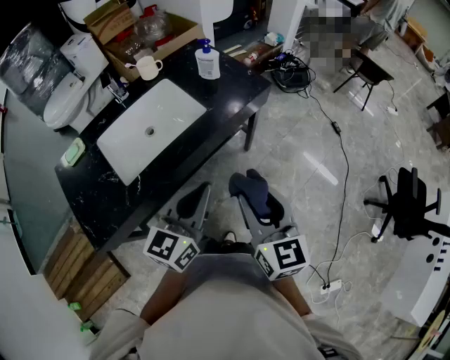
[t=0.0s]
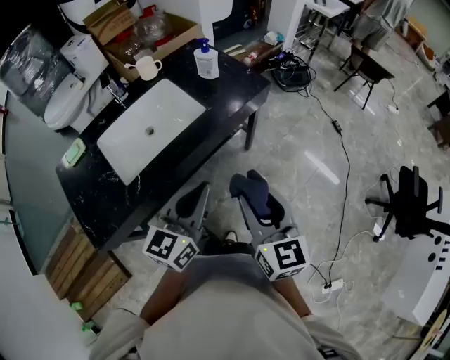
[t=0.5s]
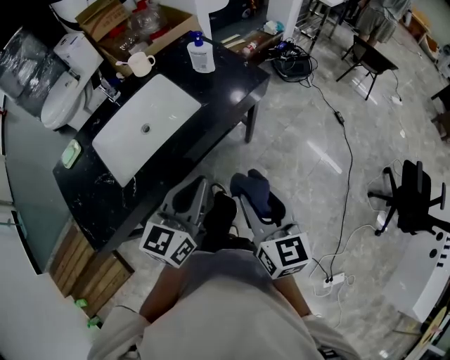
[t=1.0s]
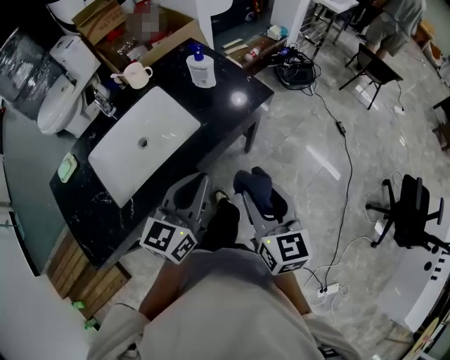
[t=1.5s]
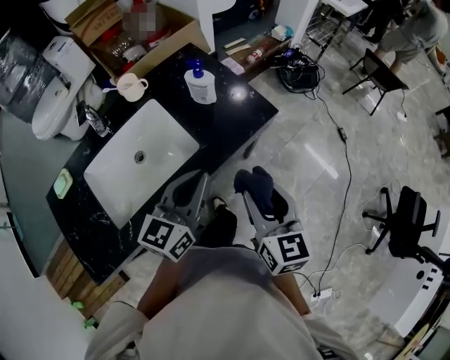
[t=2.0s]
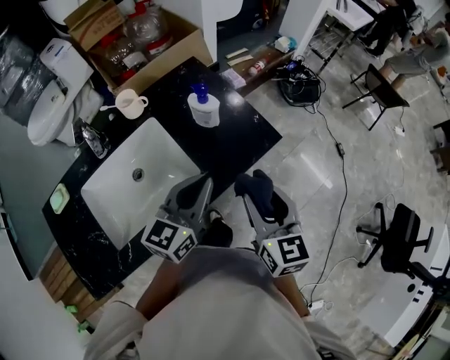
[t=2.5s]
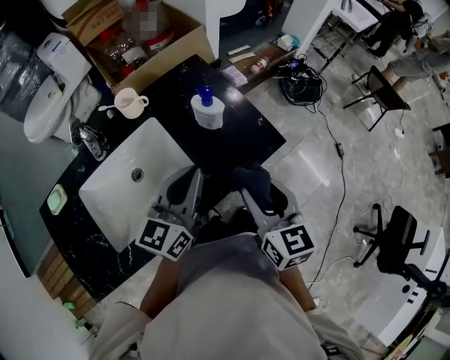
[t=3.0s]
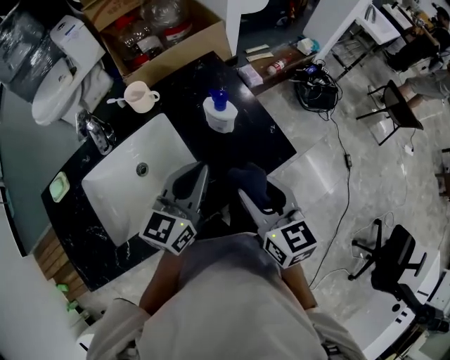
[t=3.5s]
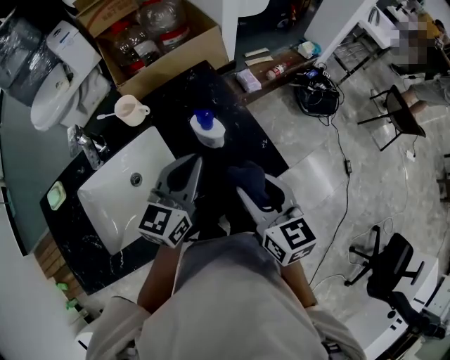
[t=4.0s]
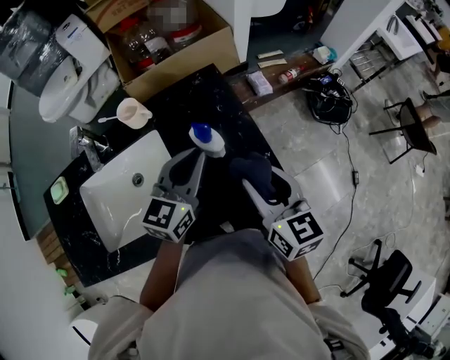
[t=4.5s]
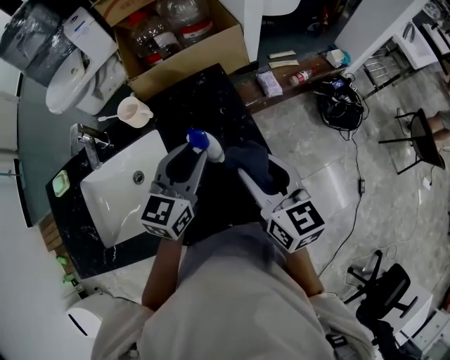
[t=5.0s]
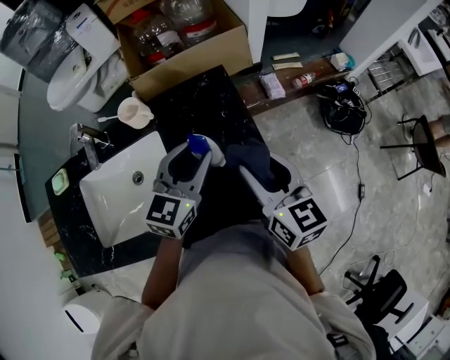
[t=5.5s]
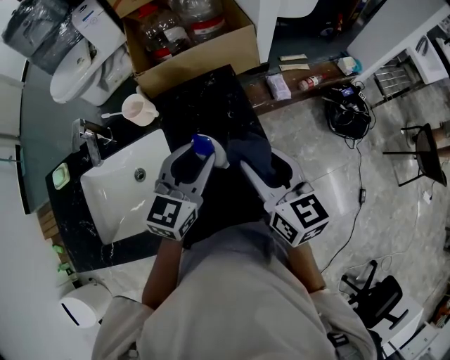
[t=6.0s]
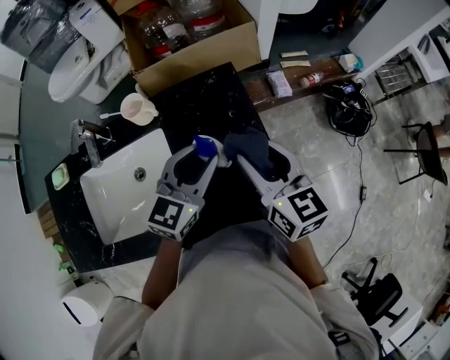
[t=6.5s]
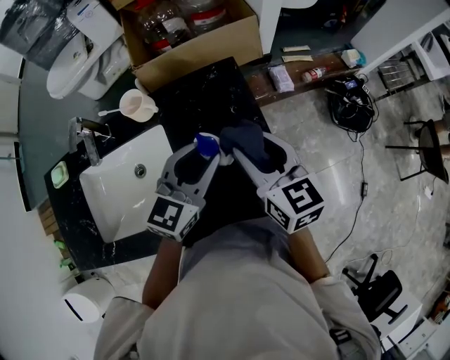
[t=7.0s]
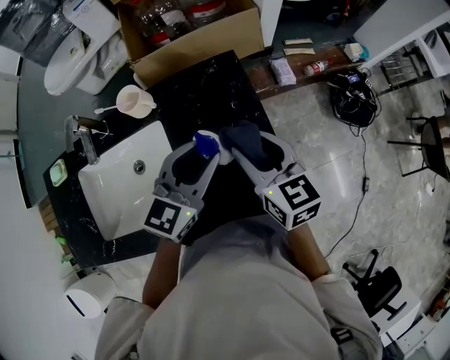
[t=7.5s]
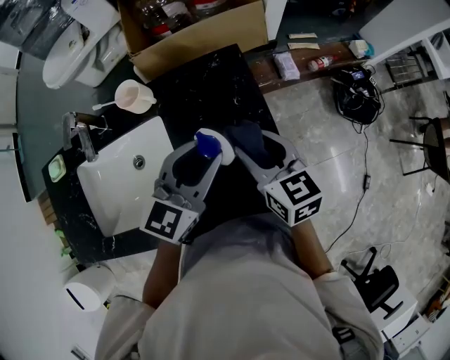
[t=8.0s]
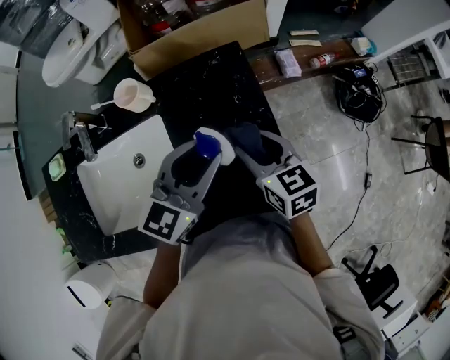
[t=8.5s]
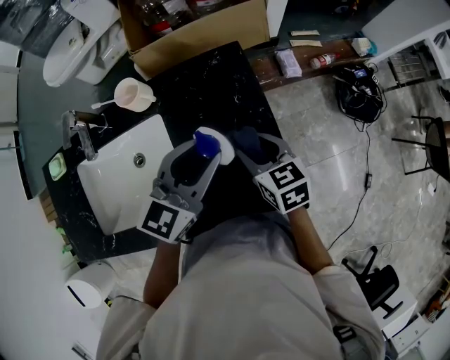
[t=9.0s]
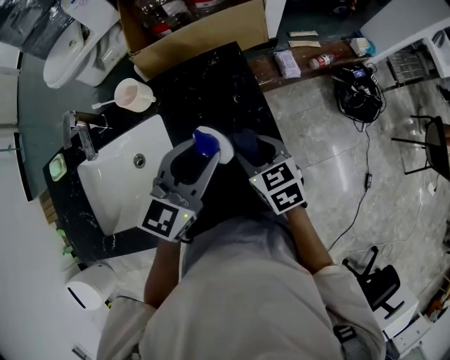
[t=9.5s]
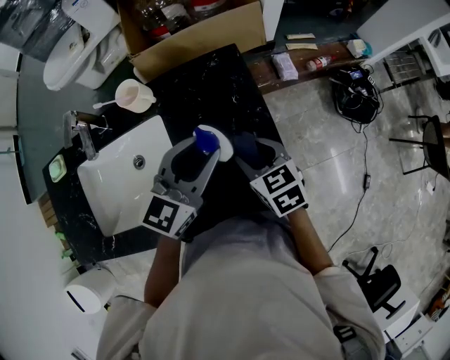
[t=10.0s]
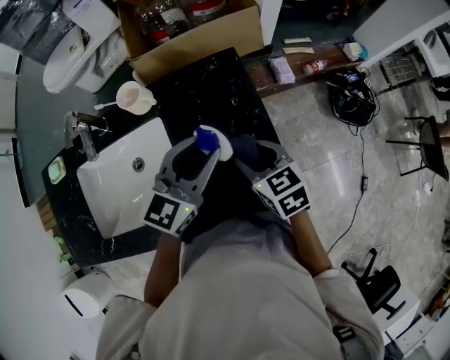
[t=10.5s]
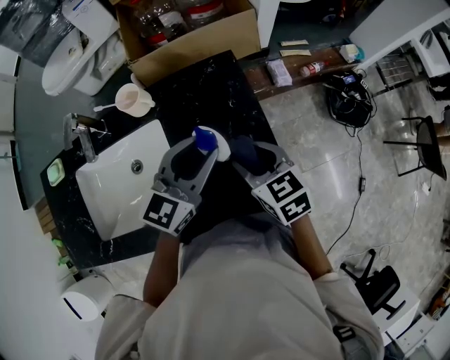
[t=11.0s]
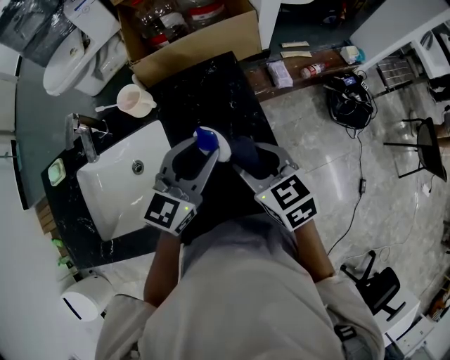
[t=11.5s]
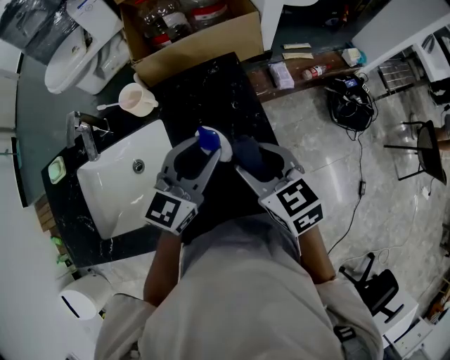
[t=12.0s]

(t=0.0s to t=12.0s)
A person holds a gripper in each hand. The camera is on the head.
t=0.0s - t=2.0s: The grippers both shift forward by roughly 20 cm.
t=2.0s - t=4.0s: The two grippers go some 20 cm forward. The right gripper rotates about 20 degrees.
t=4.0s - t=6.0s: The right gripper travels forward by approximately 15 cm; the left gripper heads forward, covering some 10 cm, and opens up.
t=6.0s - t=8.0s: The right gripper goes about 5 cm downward.
t=8.0s - t=10.0s: The right gripper heads downward, covering approximately 5 cm.
t=10.0s - t=12.0s: The right gripper moves upward, roughly 10 cm.

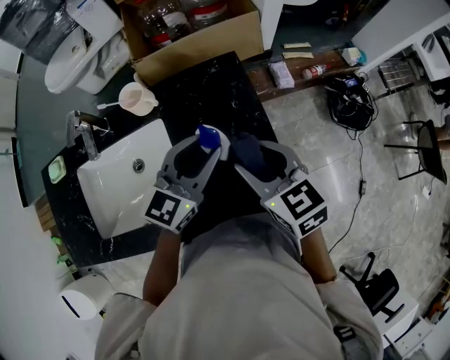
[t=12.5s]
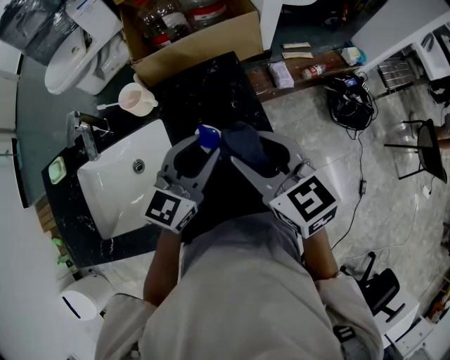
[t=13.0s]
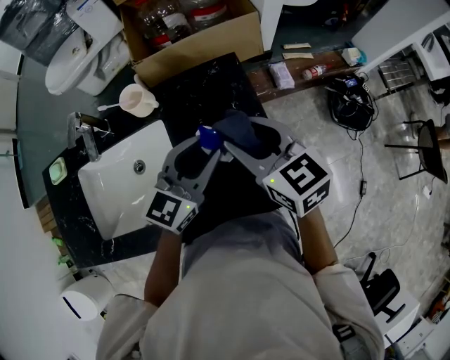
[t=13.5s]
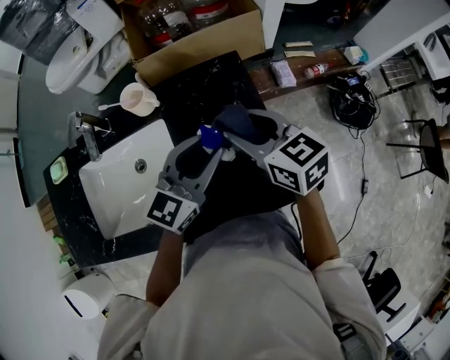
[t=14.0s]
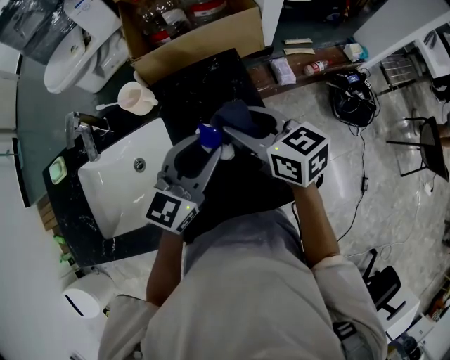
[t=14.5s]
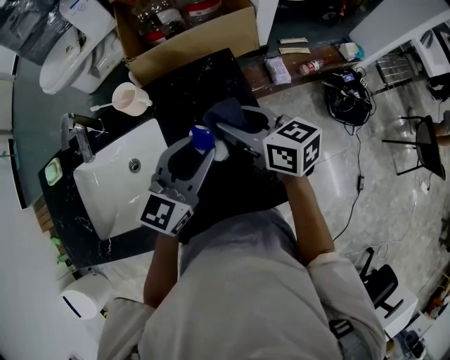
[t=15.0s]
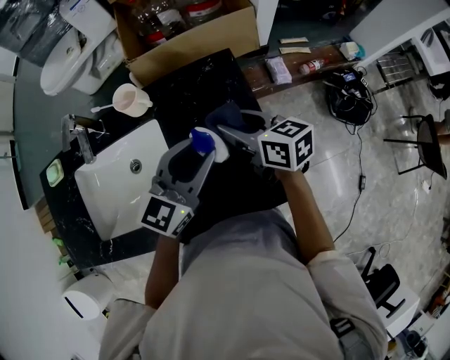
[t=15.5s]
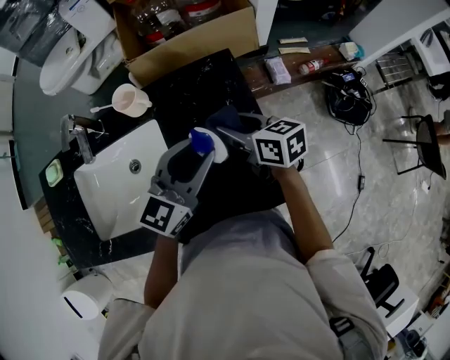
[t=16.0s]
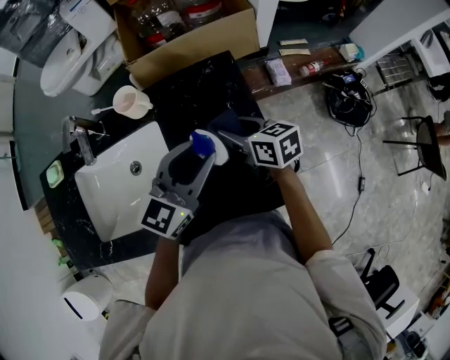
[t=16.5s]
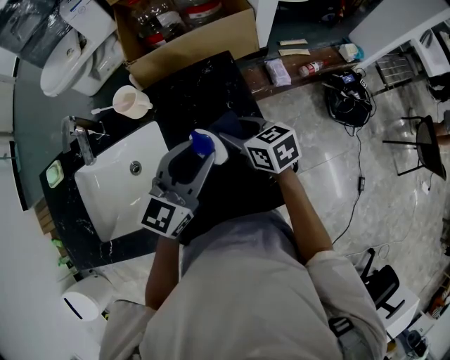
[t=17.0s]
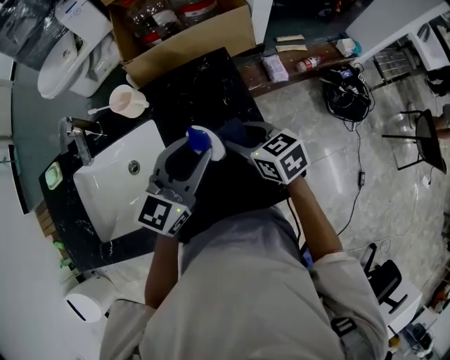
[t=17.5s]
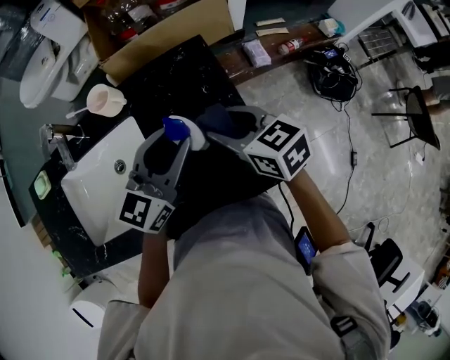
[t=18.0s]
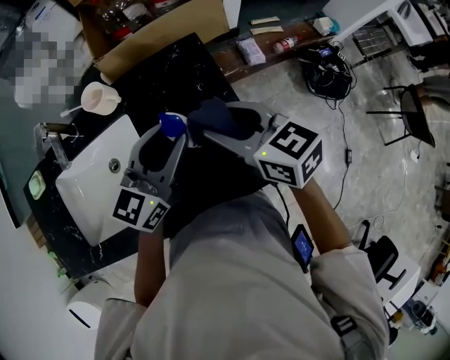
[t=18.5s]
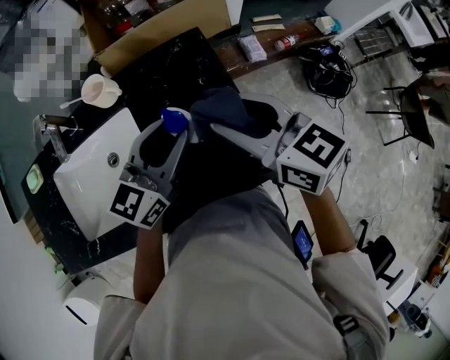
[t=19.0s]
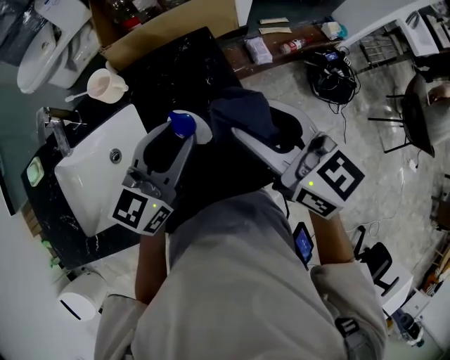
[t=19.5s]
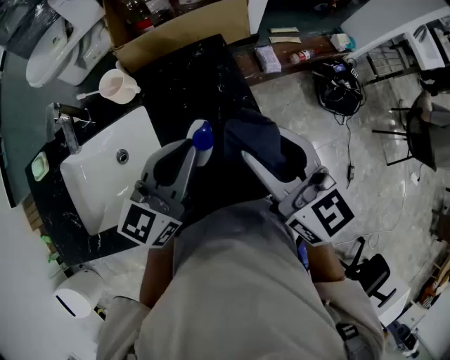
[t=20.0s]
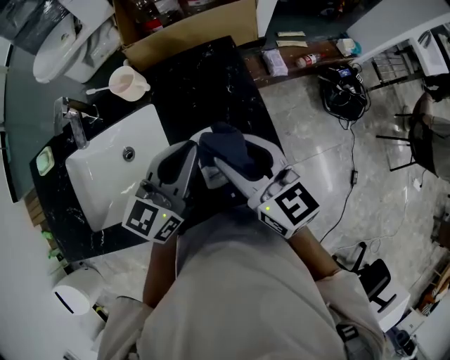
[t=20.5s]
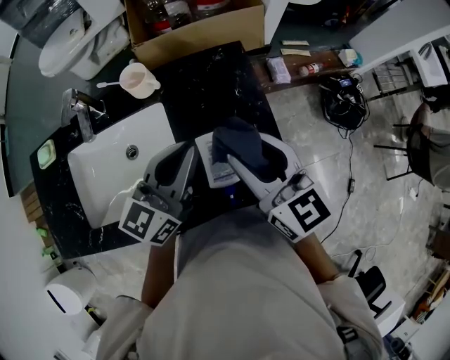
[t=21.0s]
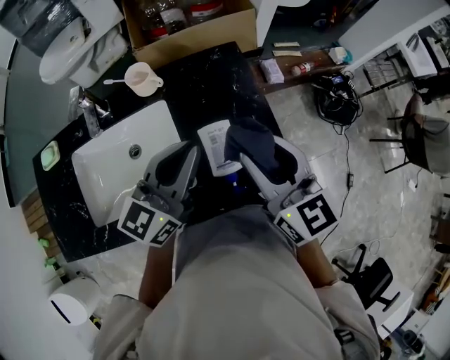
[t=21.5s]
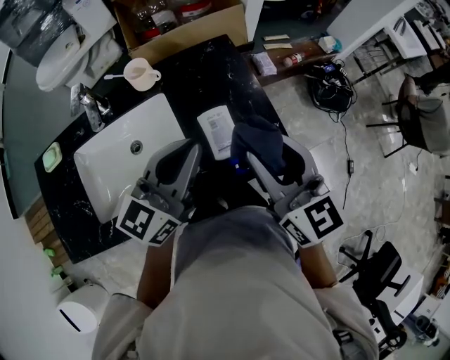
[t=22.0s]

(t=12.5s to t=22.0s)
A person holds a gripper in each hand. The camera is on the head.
t=12.5s - t=14.5s: The right gripper travels forward by approximately 10 cm.
t=14.5s - t=16.5s: The right gripper travels downward by approximately 10 cm.
t=16.5s - t=18.0s: The right gripper is displaced upward by approximately 5 cm.
t=18.0s - t=20.0s: The right gripper moves upward, roughly 10 cm, and changes its angle by about 20 degrees; the left gripper closes.
t=20.0s - t=22.0s: The right gripper is displaced backward by some 10 cm. Meanwhile the left gripper heads backward, to the left and upward, covering some 10 cm.

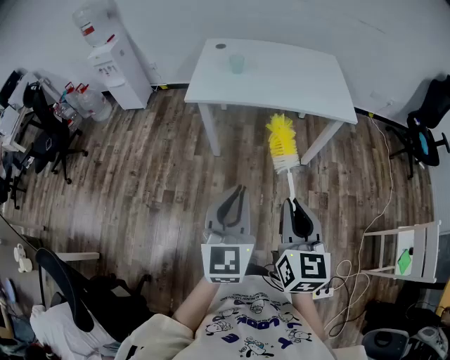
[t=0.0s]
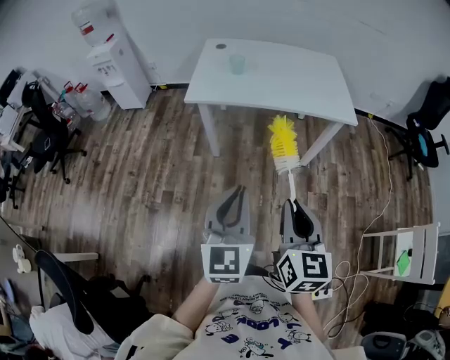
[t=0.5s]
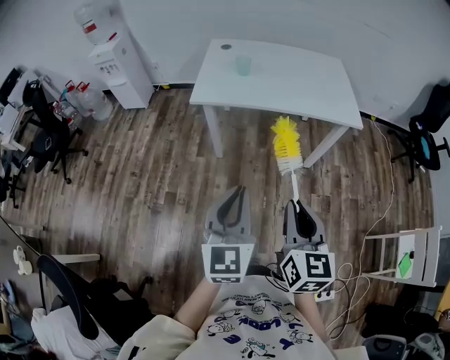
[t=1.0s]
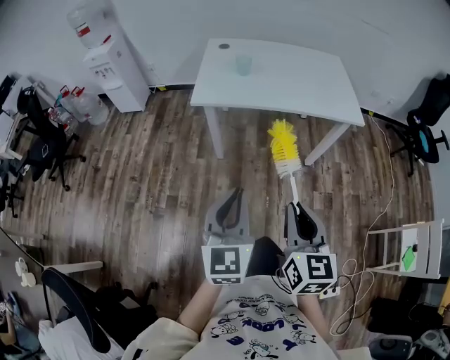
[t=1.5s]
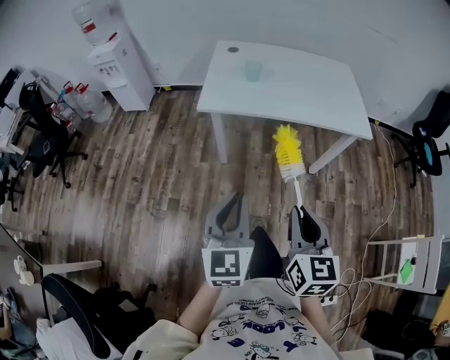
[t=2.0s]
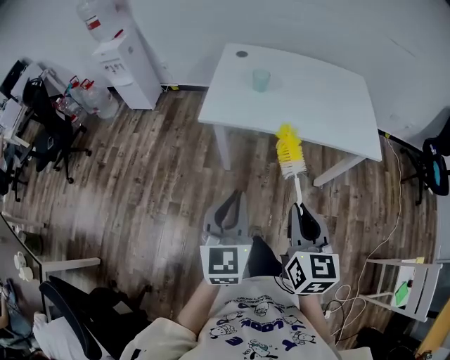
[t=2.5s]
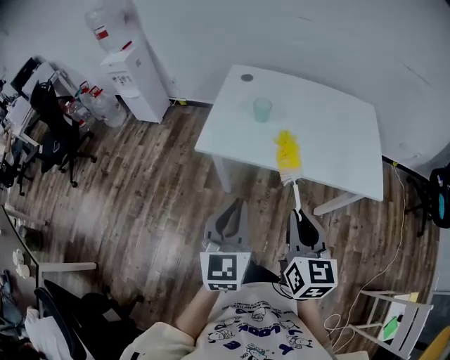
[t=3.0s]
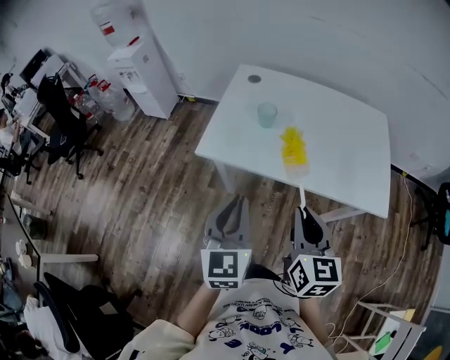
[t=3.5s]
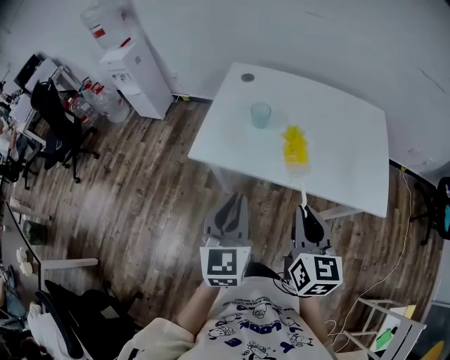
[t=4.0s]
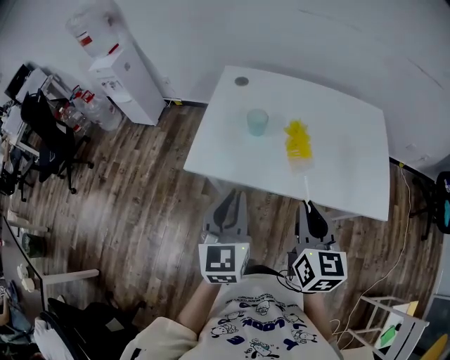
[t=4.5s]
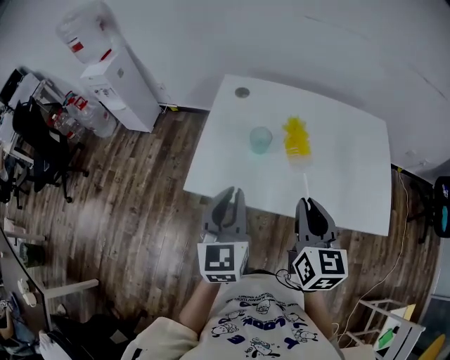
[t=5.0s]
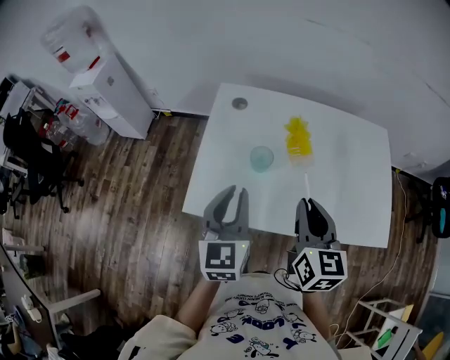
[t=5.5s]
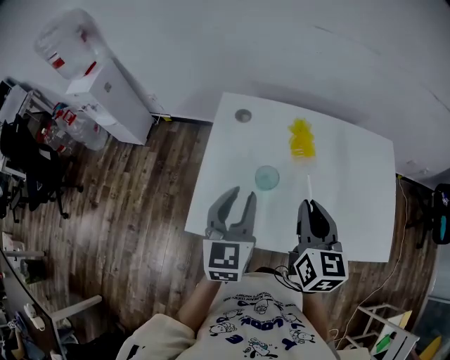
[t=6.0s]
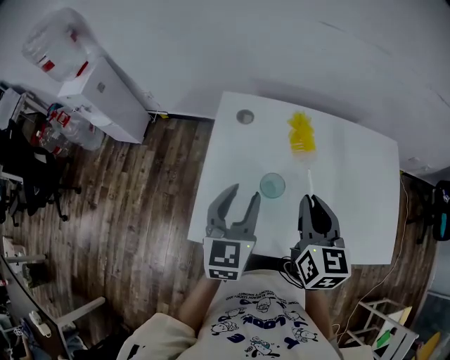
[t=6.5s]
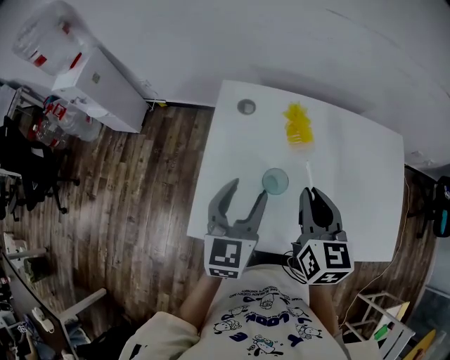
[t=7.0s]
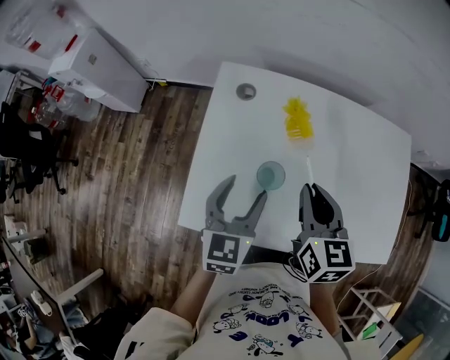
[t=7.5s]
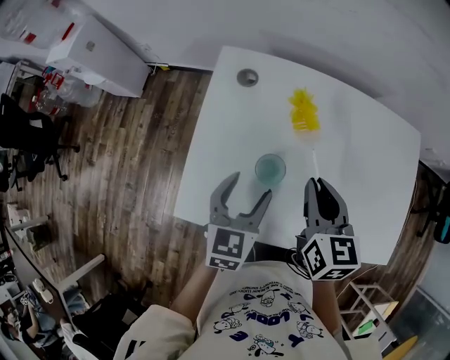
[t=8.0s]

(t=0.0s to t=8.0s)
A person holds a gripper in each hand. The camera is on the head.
t=0.0s - t=2.0s: The left gripper goes about 10 cm to the left and forward, while the right gripper is displaced forward and to the left by some 10 cm.
t=2.0s - t=4.0s: The two grippers go roughly 30 cm forward.
t=4.0s - t=6.0s: The grippers both shift forward by some 30 cm.
t=6.0s - t=8.0s: The right gripper is displaced forward and downward by about 10 cm; the left gripper goes about 10 cm downward, and opens up.
